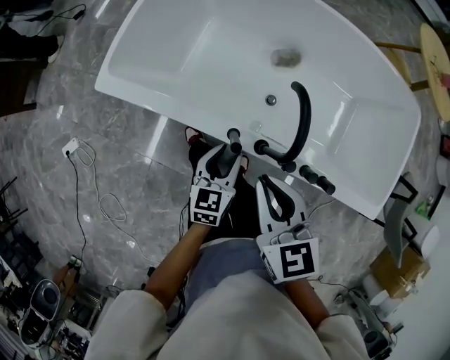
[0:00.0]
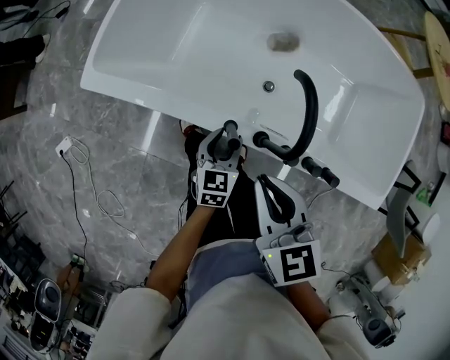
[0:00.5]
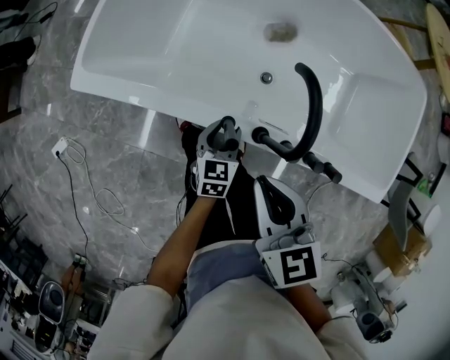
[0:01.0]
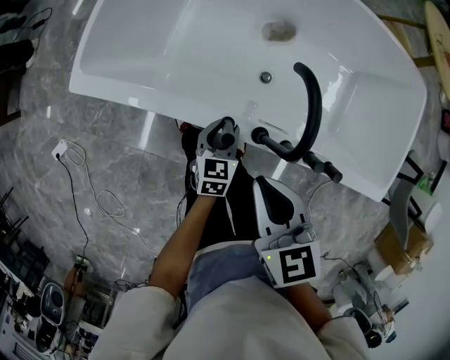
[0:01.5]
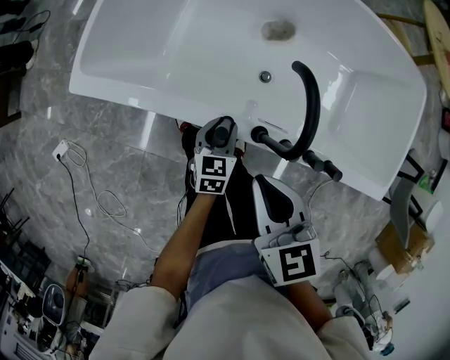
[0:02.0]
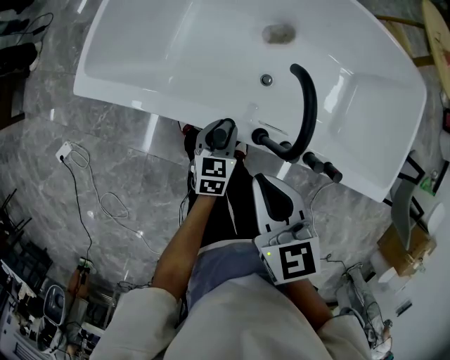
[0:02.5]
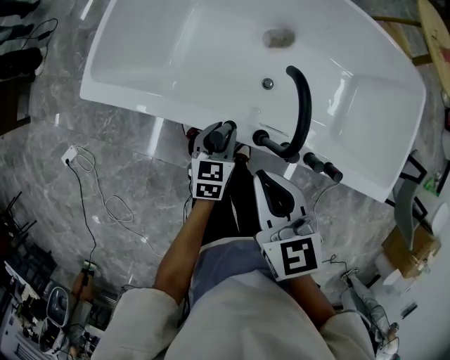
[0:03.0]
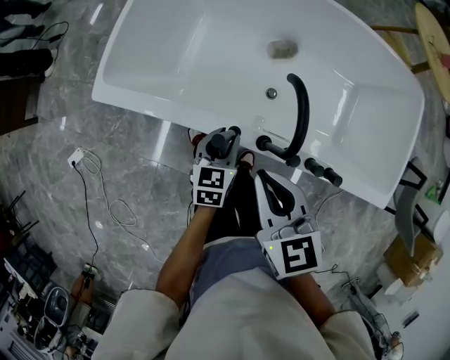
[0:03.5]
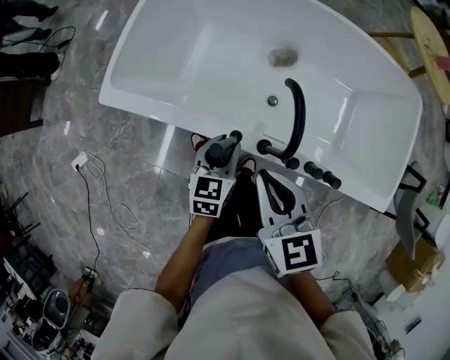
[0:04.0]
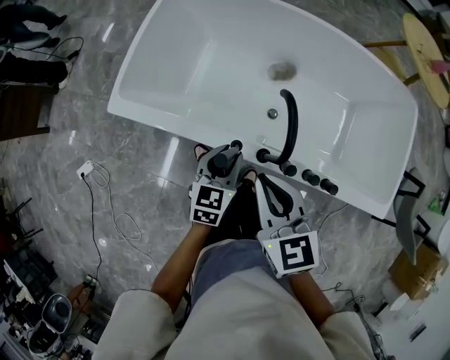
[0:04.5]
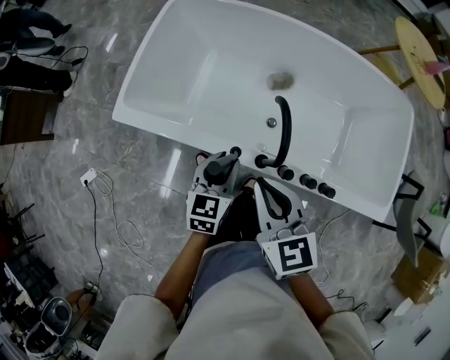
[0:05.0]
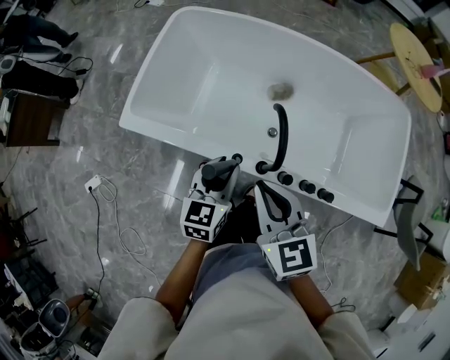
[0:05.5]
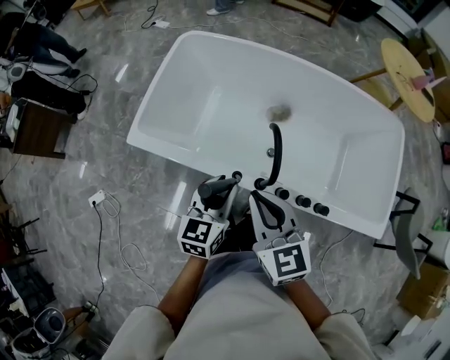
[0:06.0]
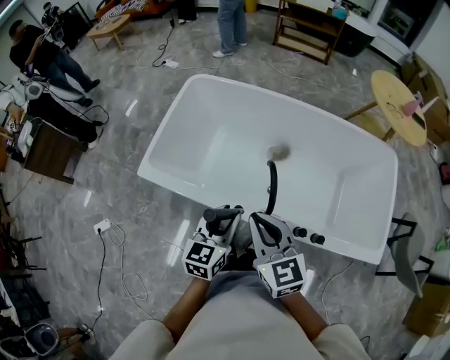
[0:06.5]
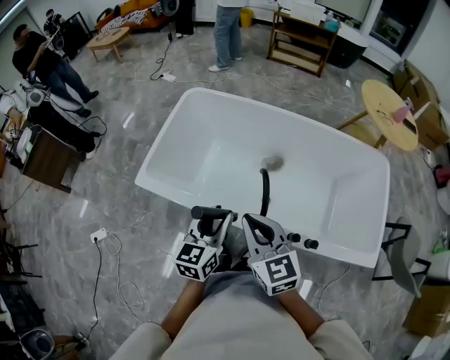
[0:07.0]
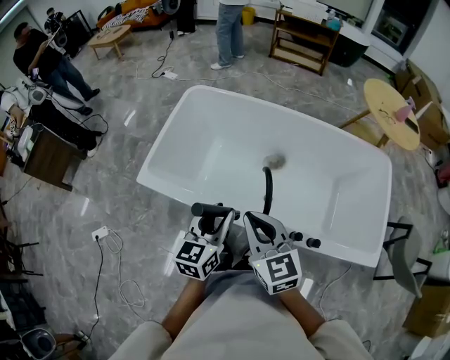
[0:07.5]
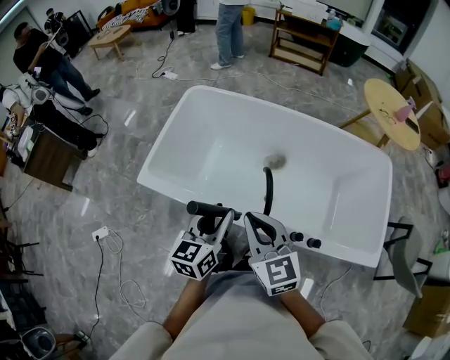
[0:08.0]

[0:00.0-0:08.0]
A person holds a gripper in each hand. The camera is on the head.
0:00.0 to 0:02.0: The right gripper heads downward, covering approximately 5 cm. Meanwhile the left gripper travels downward by about 10 cm.
0:02.0 to 0:04.0: The right gripper moves upward, about 5 cm. Meanwhile the left gripper is displaced upward by roughly 10 cm.
0:04.0 to 0:06.0: The left gripper heads upward, covering about 15 cm. The right gripper is displaced upward by some 10 cm.
0:06.0 to 0:08.0: The left gripper moves upward, roughly 10 cm.

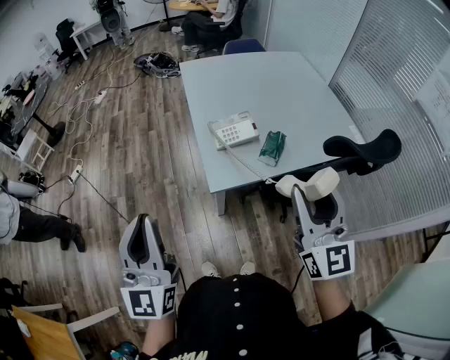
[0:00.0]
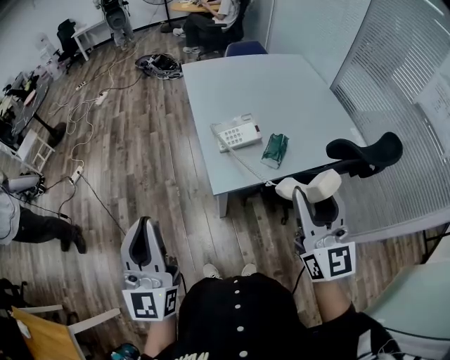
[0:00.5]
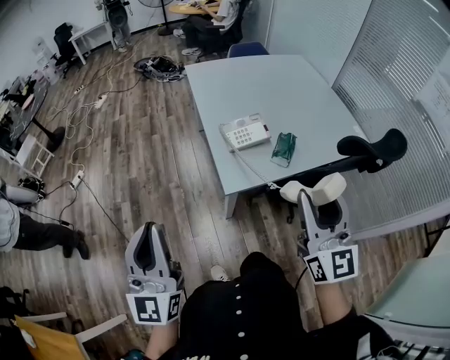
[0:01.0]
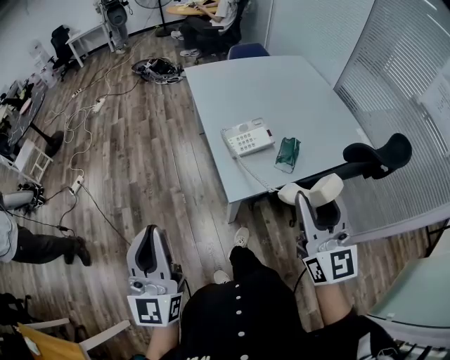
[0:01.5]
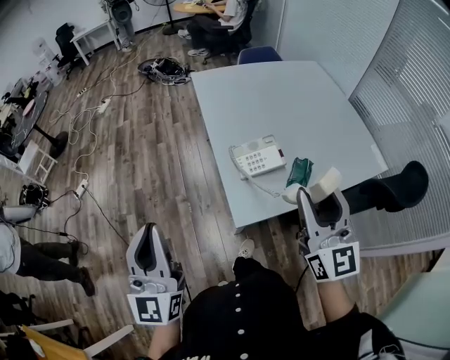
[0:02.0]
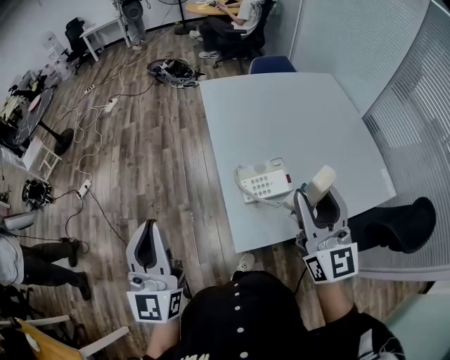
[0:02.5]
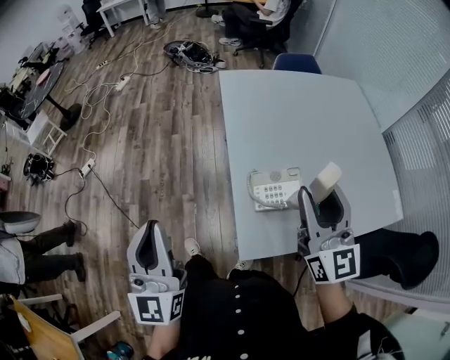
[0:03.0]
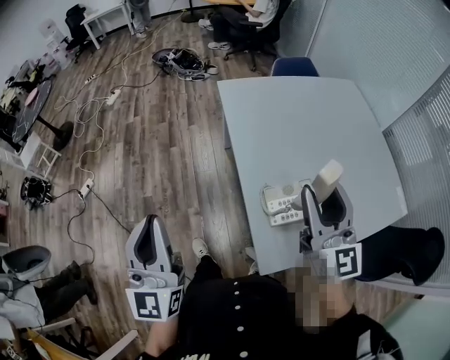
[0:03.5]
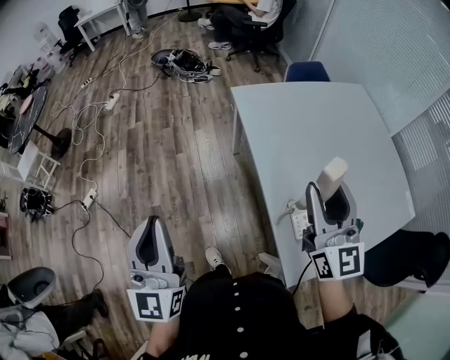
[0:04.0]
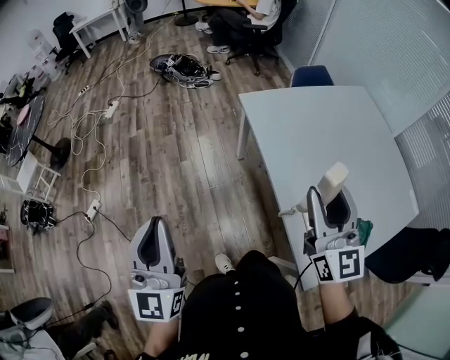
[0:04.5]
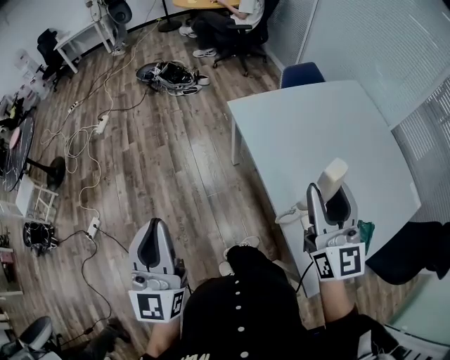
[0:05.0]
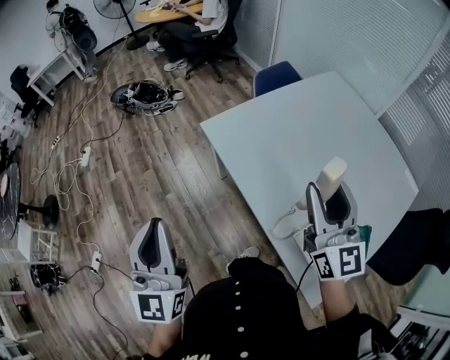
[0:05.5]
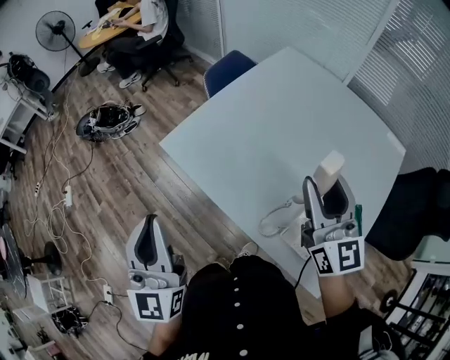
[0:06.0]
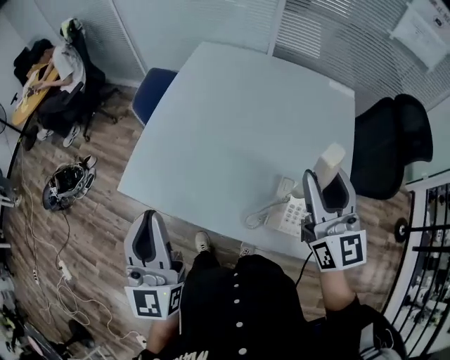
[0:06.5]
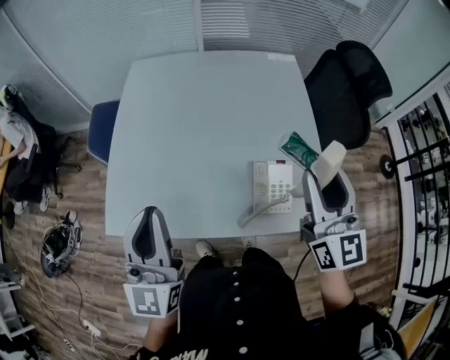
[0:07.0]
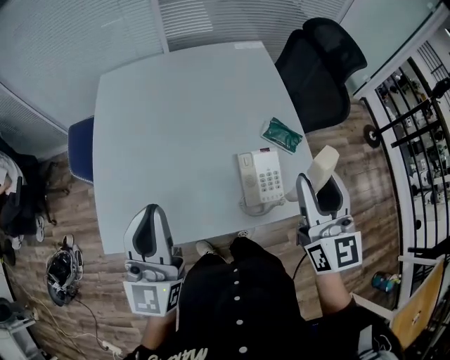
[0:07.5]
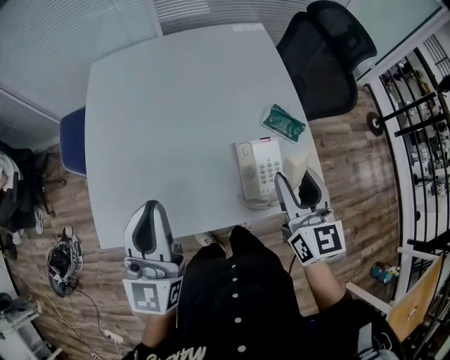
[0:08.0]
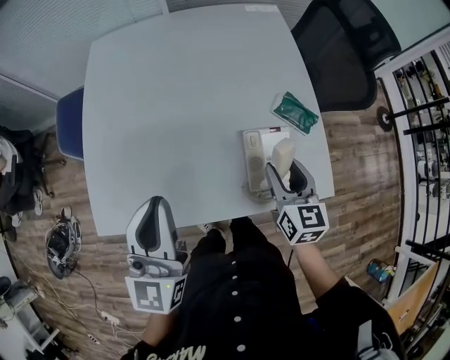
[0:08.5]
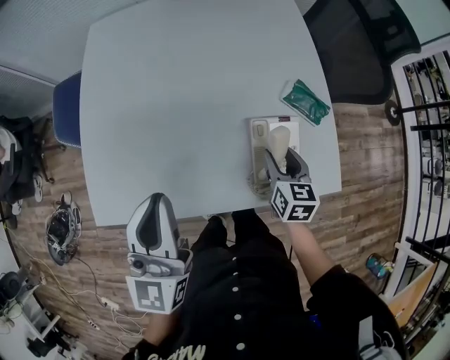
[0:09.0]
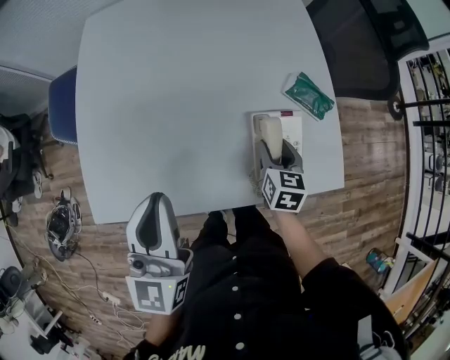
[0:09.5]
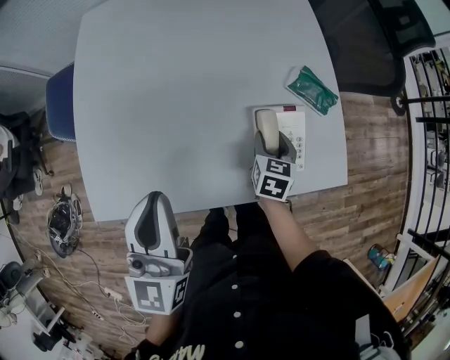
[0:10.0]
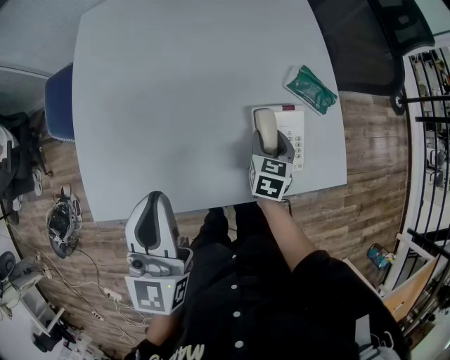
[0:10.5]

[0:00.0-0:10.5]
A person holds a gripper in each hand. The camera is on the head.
0:00.0 to 0:02.0: Both grippers move forward and to the left, roughly 15 cm.
0:02.0 to 0:04.0: Both grippers travel together forward and to the left, about 35 cm.
0:04.0 to 0:06.5: The right gripper ends up roughly 15 cm from where it was, and changes its angle by some 60 degrees. Meanwhile the left gripper changes place by roughly 40 cm, and turns by approximately 60 degrees.
0:06.5 to 0:08.5: The right gripper travels downward by approximately 20 cm, and rotates roughly 40 degrees; the left gripper shifts by about 15 cm, and rotates about 30 degrees.
0:08.5 to 0:10.5: The right gripper travels downward by about 15 cm, and rotates approximately 20 degrees.

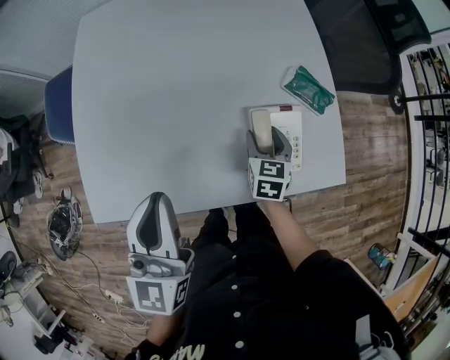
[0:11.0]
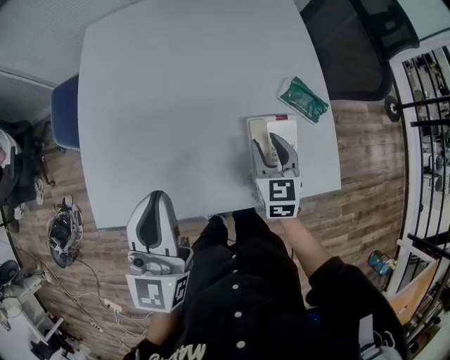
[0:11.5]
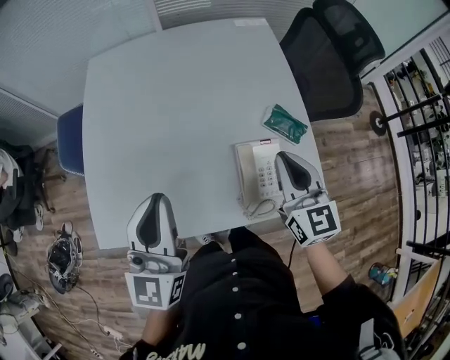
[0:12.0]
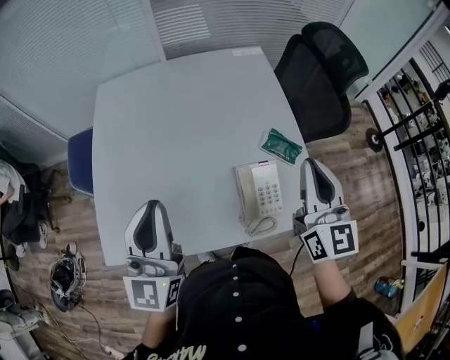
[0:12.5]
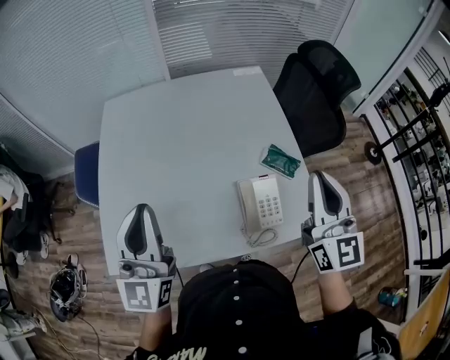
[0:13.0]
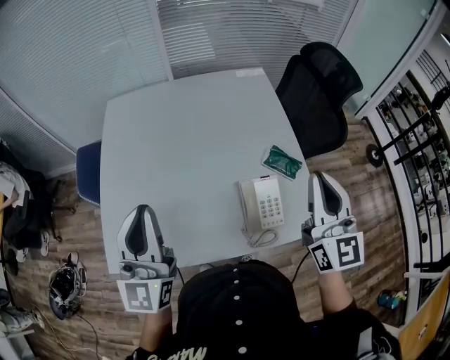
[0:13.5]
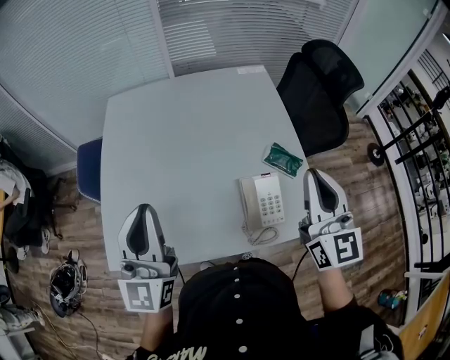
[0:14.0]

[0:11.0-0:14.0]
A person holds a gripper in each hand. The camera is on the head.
0:11.0 to 0:12.5: The left gripper shifts some 10 cm upward; the right gripper is displaced upward by some 35 cm, tilts its fingers some 40 degrees upward, and closes up.
0:12.5 to 0:14.0: The grippers make only small movements.

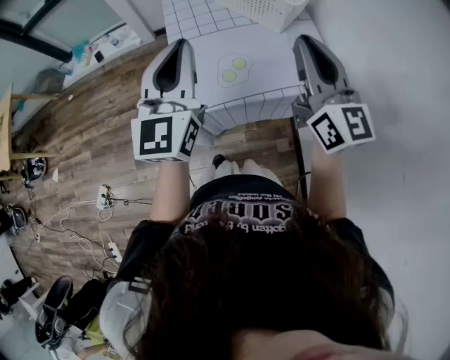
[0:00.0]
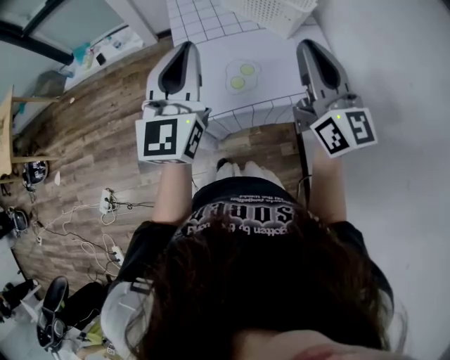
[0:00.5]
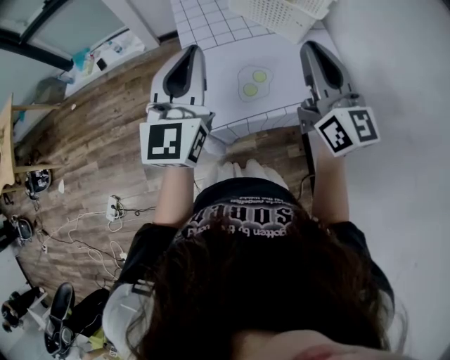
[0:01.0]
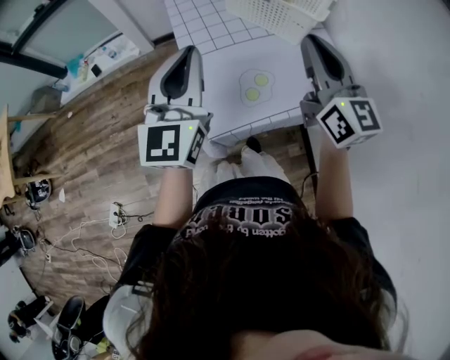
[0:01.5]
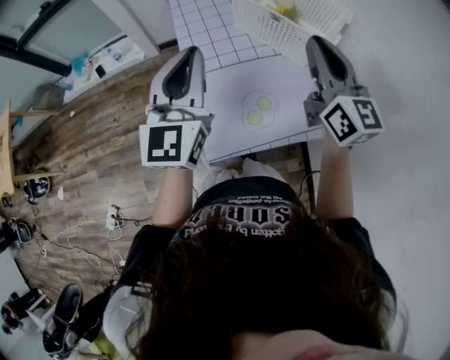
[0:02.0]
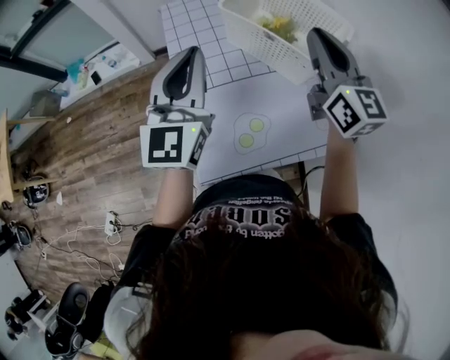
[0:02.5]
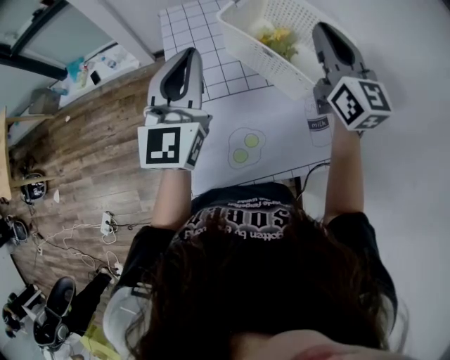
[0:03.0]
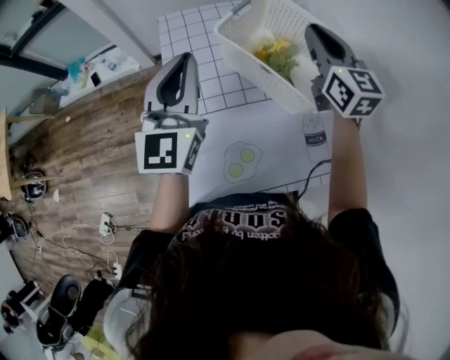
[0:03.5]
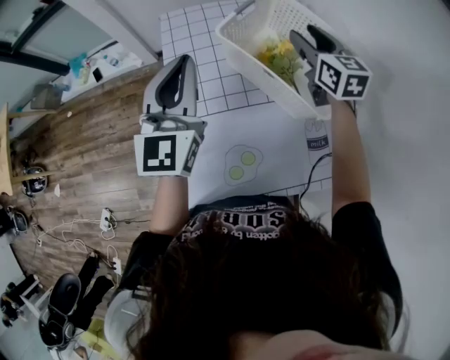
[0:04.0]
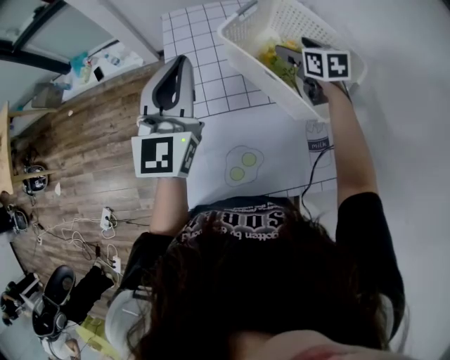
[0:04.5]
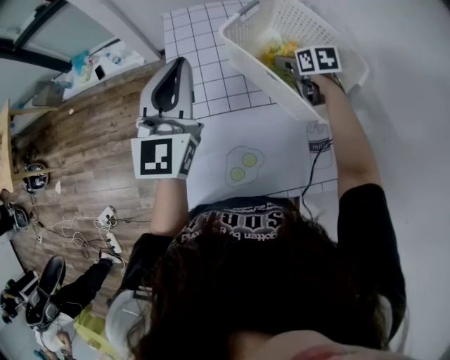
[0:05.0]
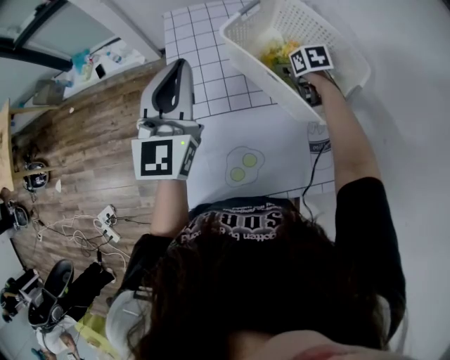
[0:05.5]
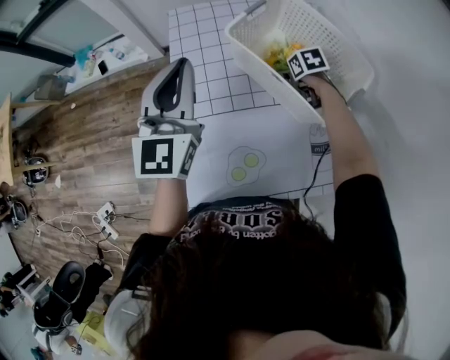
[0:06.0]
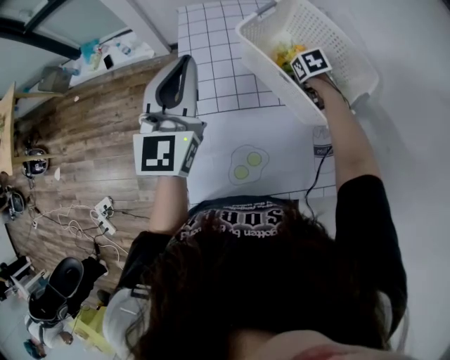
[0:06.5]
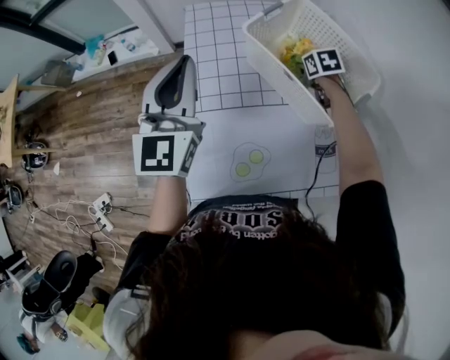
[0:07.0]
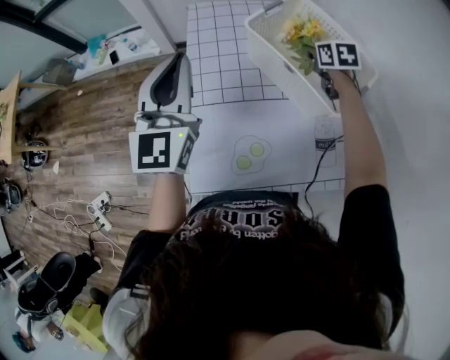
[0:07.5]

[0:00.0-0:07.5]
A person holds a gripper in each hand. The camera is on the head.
0:00.0 to 0:02.0: Both grippers travel together forward, some 15 cm.
0:02.0 to 0:04.0: The left gripper travels forward by about 20 cm. Meanwhile the right gripper travels forward by about 30 cm, turns by roughly 20 degrees, and opens up.
0:04.0 to 0:05.5: The right gripper shifts about 20 cm downward, tilts its fingers about 40 degrees downward, and opens.
0:05.5 to 0:07.5: The right gripper travels upward by some 10 cm, and closes, while the left gripper heads to the left, covering roughly 5 cm.
